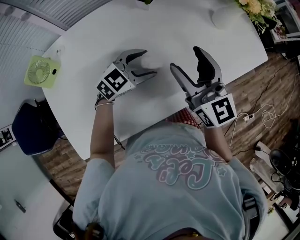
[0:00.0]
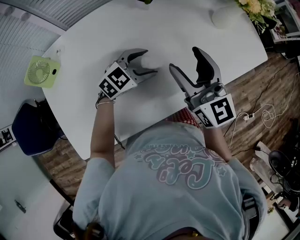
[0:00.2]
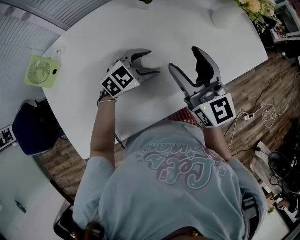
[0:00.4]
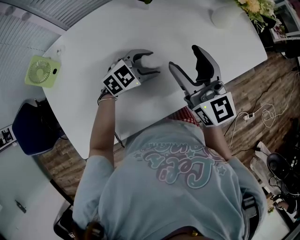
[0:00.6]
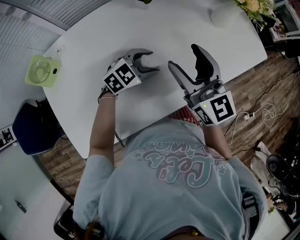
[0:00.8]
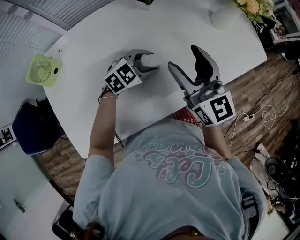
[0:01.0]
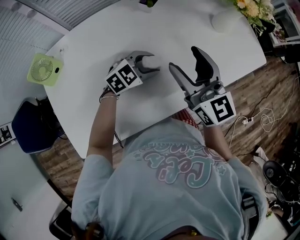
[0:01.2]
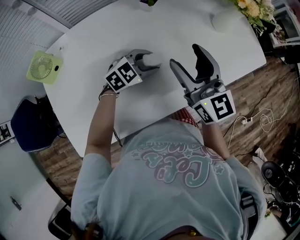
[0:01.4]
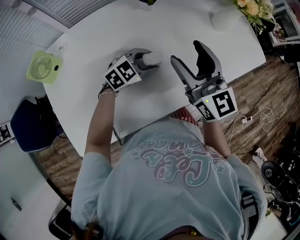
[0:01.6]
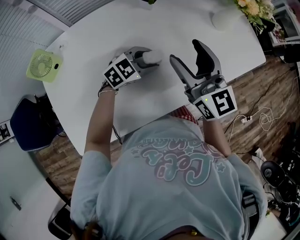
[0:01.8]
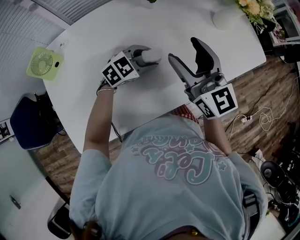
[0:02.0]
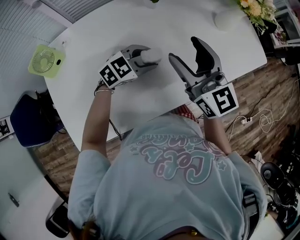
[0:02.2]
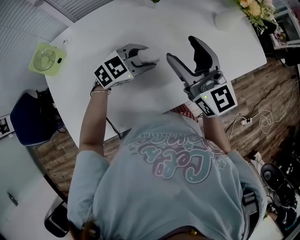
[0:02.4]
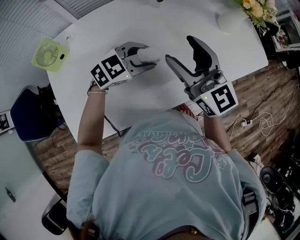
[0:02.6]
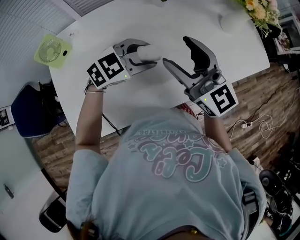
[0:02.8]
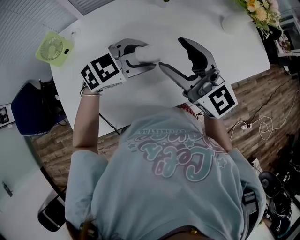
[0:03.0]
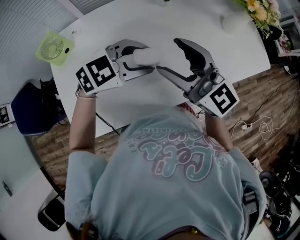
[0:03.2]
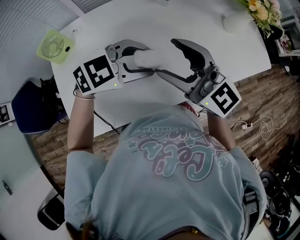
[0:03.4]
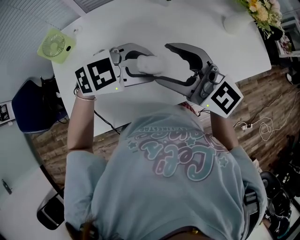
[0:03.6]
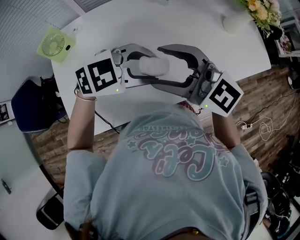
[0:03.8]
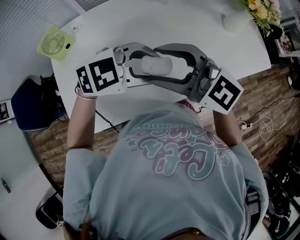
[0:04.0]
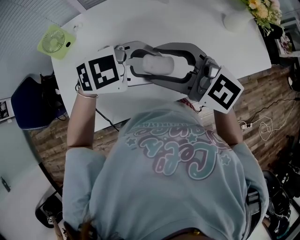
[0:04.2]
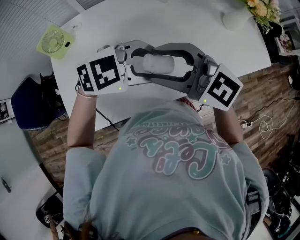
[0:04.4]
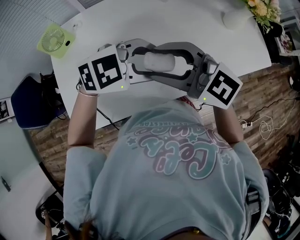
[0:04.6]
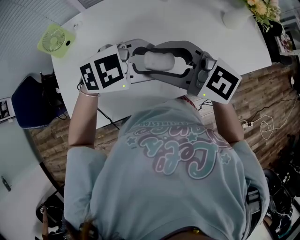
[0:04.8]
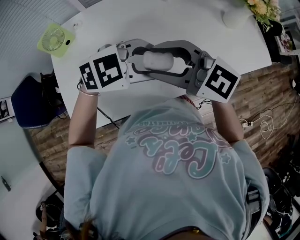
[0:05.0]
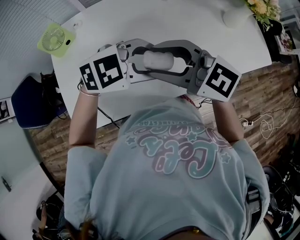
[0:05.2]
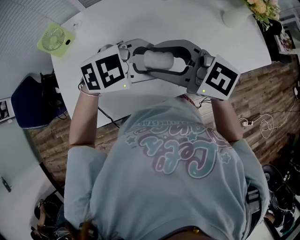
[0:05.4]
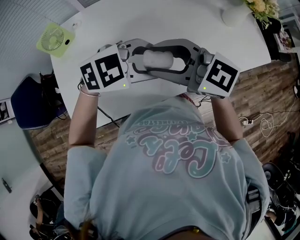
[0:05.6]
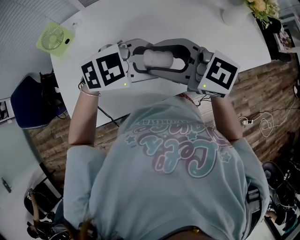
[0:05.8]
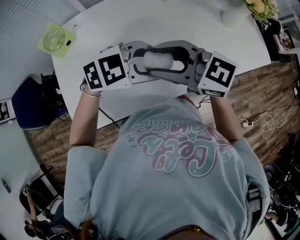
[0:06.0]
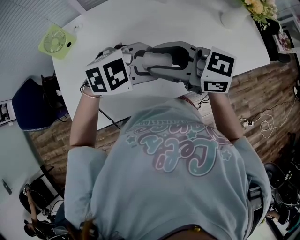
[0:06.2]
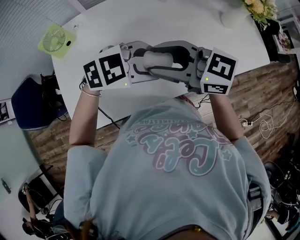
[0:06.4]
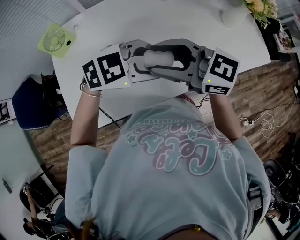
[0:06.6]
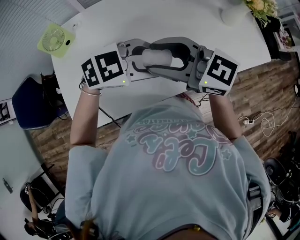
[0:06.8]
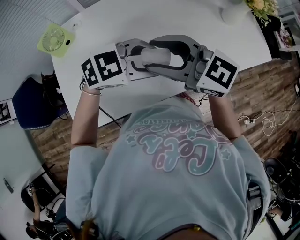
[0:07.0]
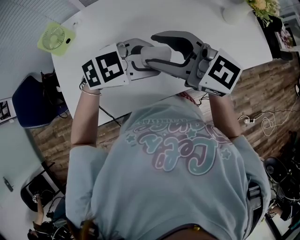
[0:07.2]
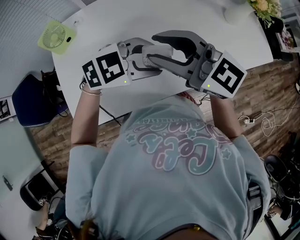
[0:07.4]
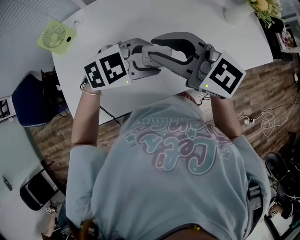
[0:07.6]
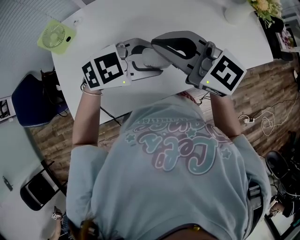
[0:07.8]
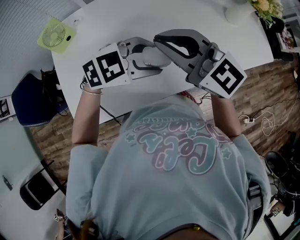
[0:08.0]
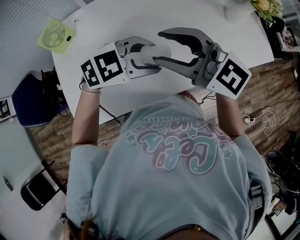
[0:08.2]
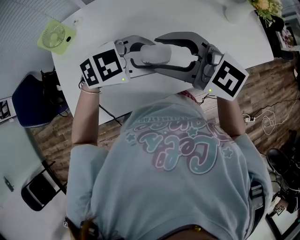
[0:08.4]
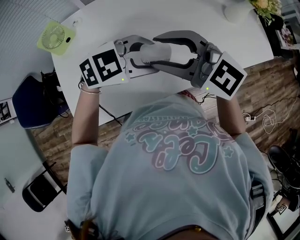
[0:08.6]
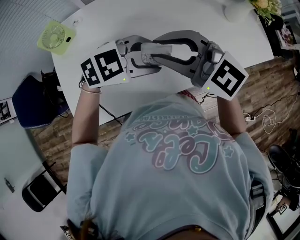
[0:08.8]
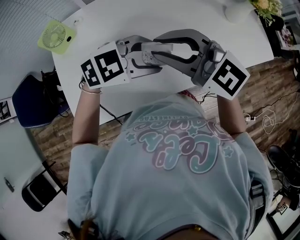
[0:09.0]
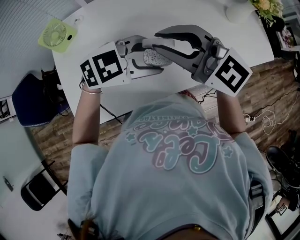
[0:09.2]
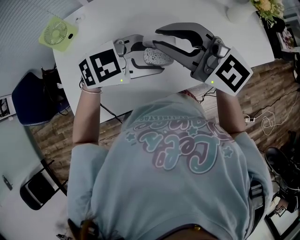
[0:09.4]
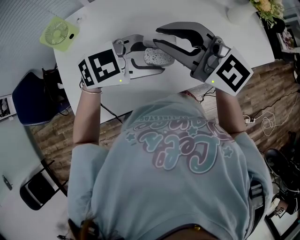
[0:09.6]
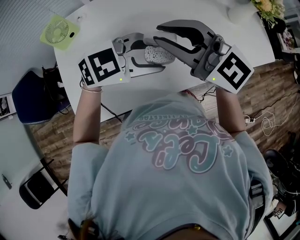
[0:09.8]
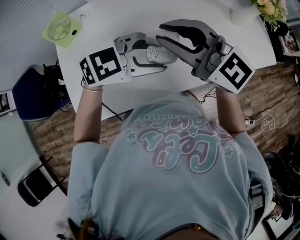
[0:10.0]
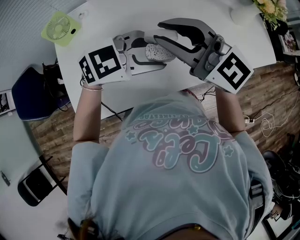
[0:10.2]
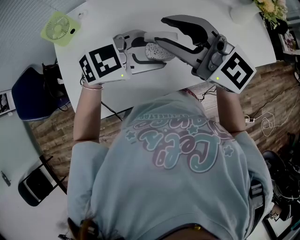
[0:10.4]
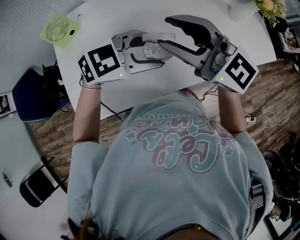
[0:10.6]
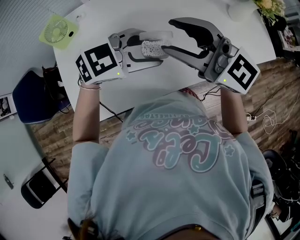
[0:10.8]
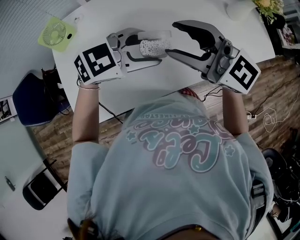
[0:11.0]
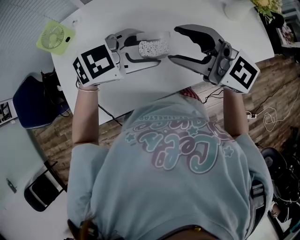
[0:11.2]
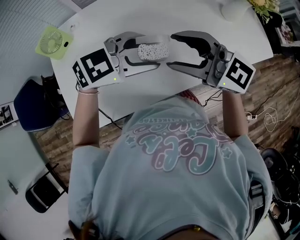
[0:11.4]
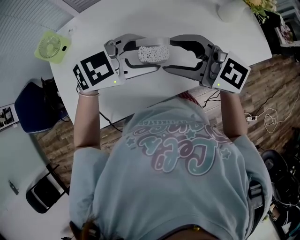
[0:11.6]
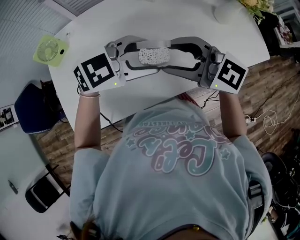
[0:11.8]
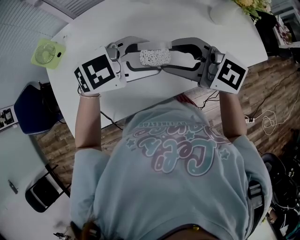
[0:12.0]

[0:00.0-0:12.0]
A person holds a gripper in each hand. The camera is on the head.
0:00.0 to 0:01.6: The left gripper closes its fingers.
0:01.6 to 0:03.0: The left gripper shifts roughly 15 cm upward and backward. Meanwhile the right gripper is displaced backward and to the left by about 10 cm, and turns by roughly 20 degrees.
0:03.0 to 0:04.4: The right gripper moves roughly 10 cm, and changes its angle by about 30 degrees. The left gripper ends up approximately 10 cm from where it was.
0:04.4 to 0:06.0: The grippers stay close to where they were, moving slightly.
0:06.0 to 0:07.6: The grippers make only small movements.
0:07.6 to 0:09.0: The right gripper opens, then closes once more.
0:09.0 to 0:10.4: The grippers stay close to where they were, moving slightly.
0:10.4 to 0:12.0: The left gripper changes place by roughly 10 cm. Meanwhile the right gripper changes place by approximately 15 cm.

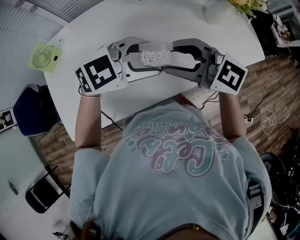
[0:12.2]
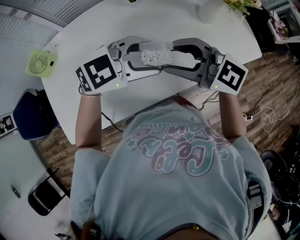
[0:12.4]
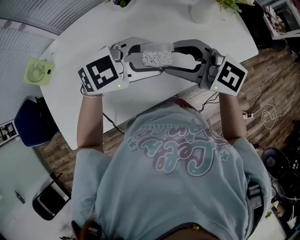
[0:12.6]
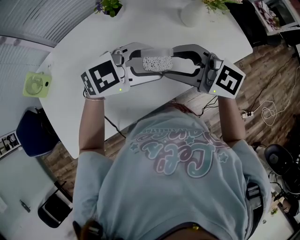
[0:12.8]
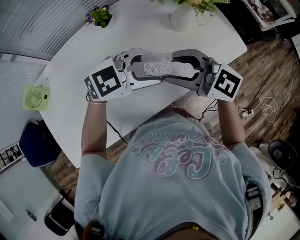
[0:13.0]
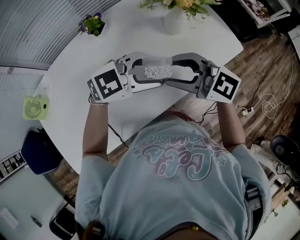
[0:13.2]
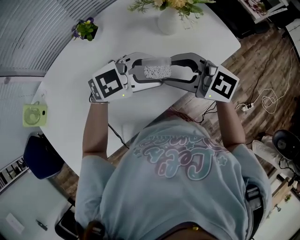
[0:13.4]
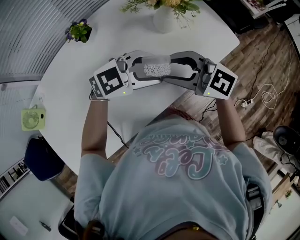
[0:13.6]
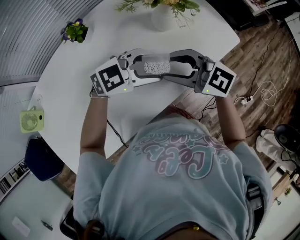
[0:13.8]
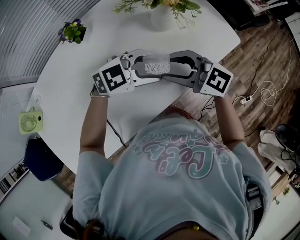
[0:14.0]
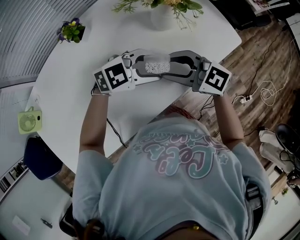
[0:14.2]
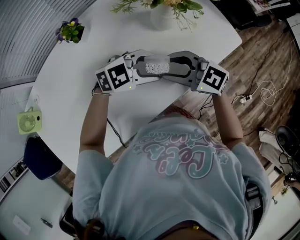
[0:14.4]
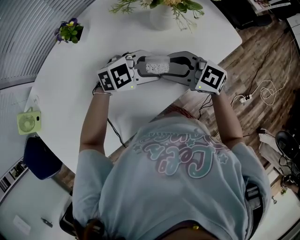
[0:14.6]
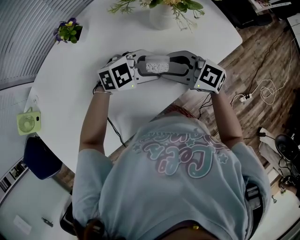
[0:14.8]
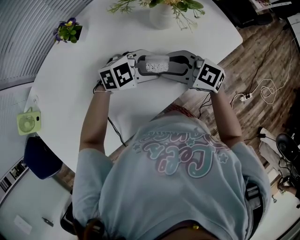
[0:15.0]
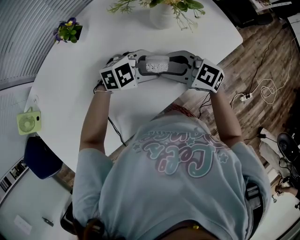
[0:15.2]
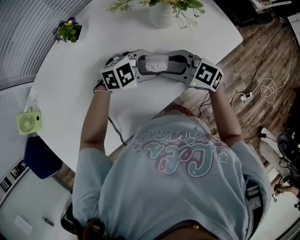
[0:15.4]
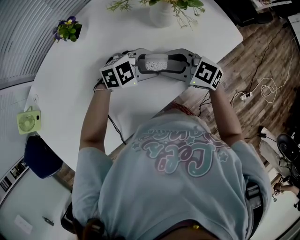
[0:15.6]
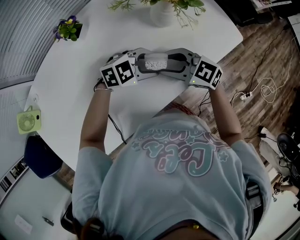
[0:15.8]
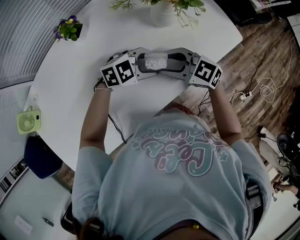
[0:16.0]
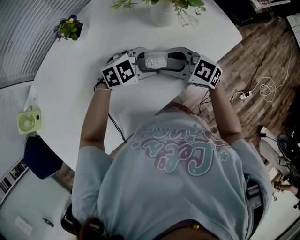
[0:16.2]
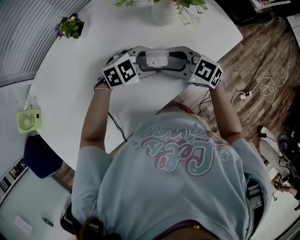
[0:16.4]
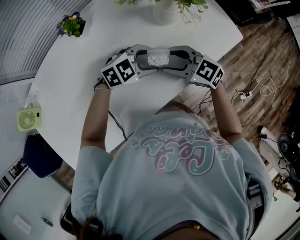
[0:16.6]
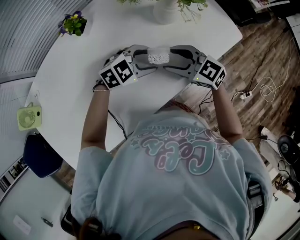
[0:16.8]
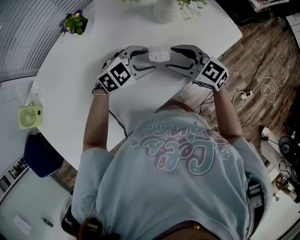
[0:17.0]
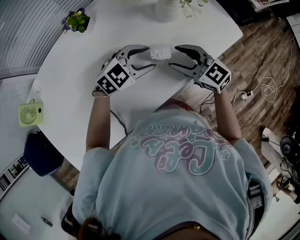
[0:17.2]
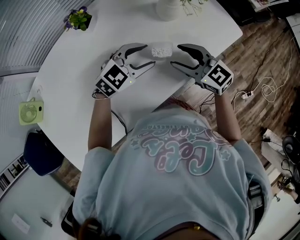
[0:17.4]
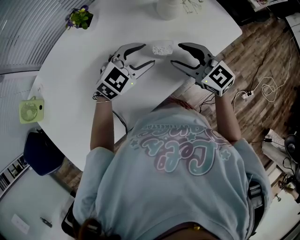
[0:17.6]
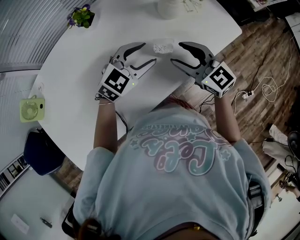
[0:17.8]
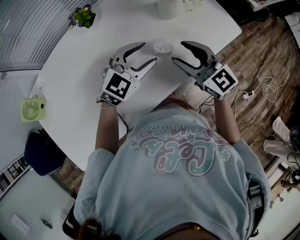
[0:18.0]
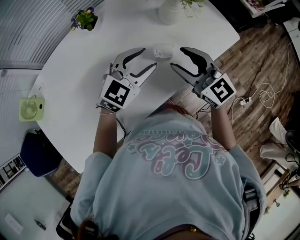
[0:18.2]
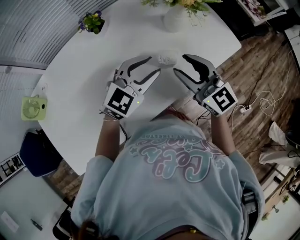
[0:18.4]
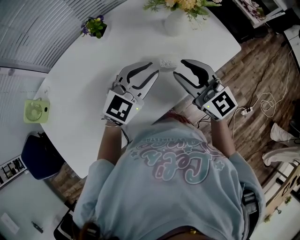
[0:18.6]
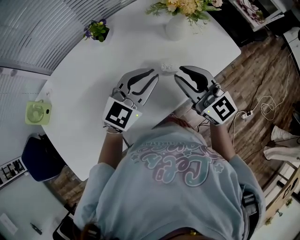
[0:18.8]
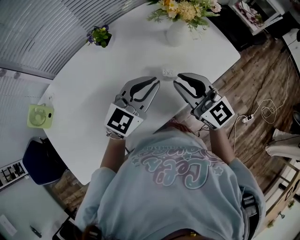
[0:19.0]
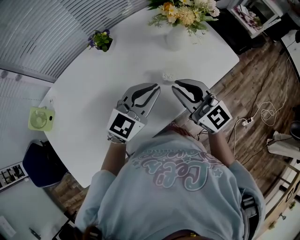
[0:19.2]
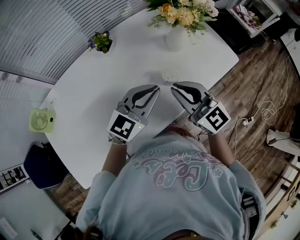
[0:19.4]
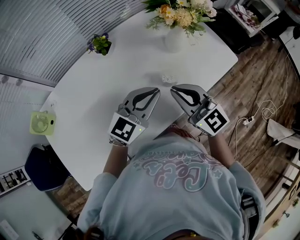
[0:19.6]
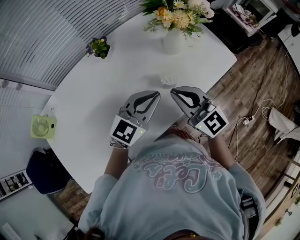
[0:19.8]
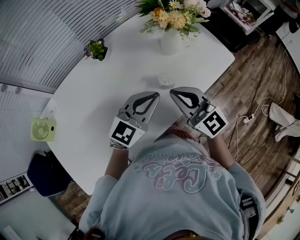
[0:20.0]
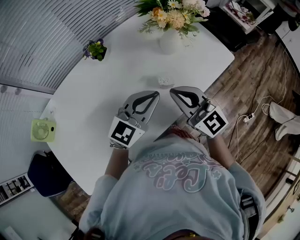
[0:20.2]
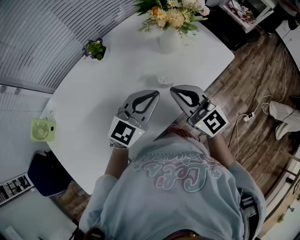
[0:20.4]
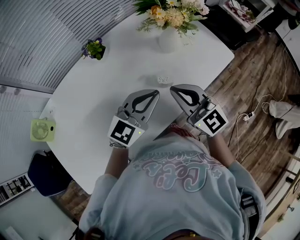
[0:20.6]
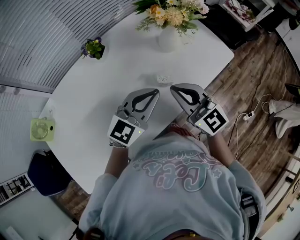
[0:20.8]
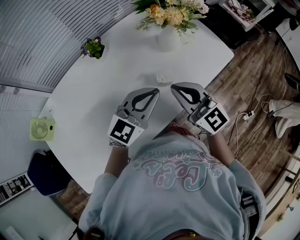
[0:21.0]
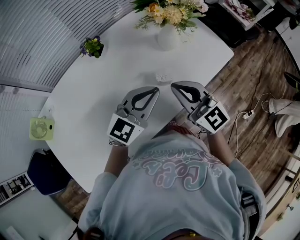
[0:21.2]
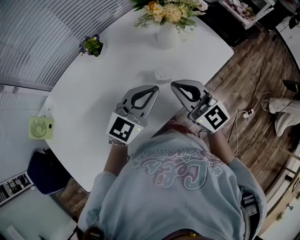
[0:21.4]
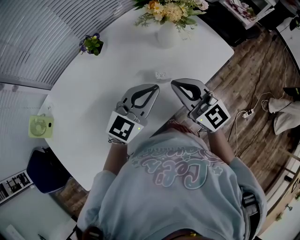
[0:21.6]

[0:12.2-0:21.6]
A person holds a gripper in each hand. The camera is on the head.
0:12.2 to 0:13.8: The right gripper moves about 20 cm. The left gripper shifts by some 20 cm.
0:13.8 to 0:15.4: Both grippers travel together downward, some 10 cm.
0:15.4 to 0:17.0: The grippers stay close to where they were, moving slightly.
0:17.0 to 0:18.4: Both grippers move upward, about 10 cm. The left gripper swivels roughly 30 degrees. Meanwhile the right gripper rotates approximately 20 degrees.
0:18.4 to 0:20.0: The left gripper closes its fingers, while the right gripper closes up.
0:20.0 to 0:21.6: There are only small adjustments of the grippers.

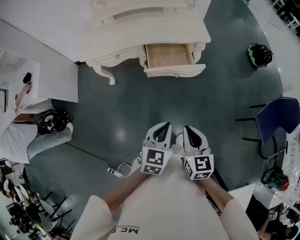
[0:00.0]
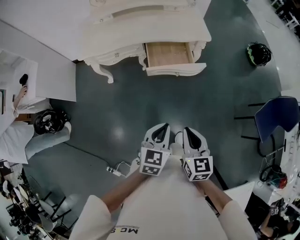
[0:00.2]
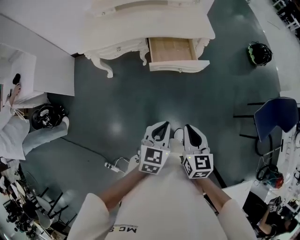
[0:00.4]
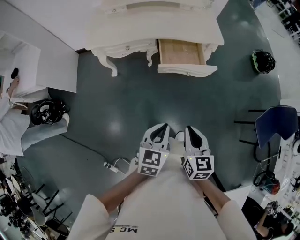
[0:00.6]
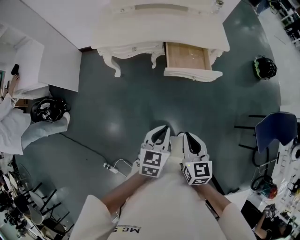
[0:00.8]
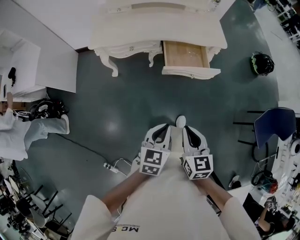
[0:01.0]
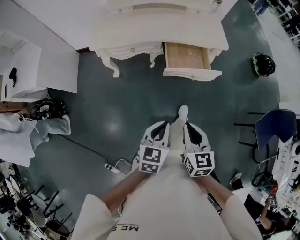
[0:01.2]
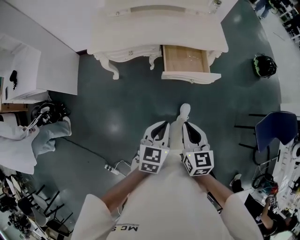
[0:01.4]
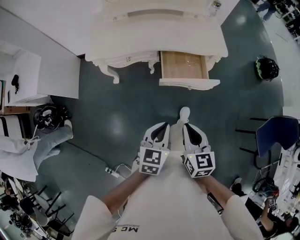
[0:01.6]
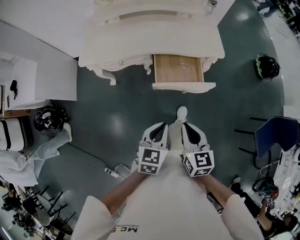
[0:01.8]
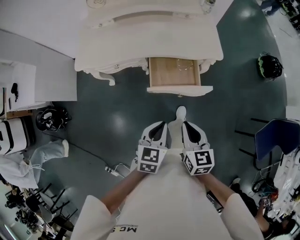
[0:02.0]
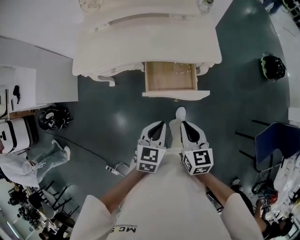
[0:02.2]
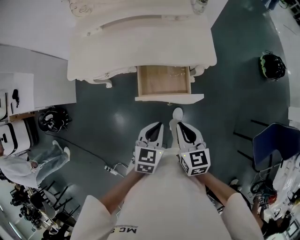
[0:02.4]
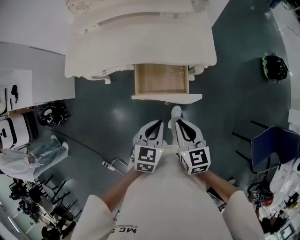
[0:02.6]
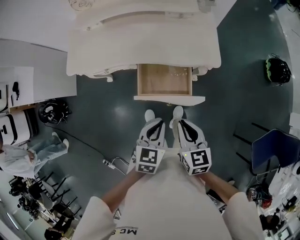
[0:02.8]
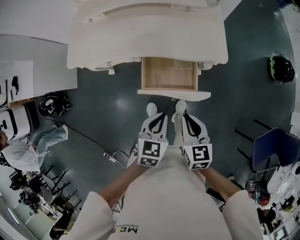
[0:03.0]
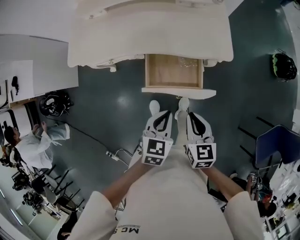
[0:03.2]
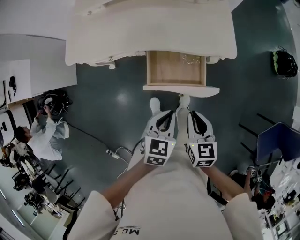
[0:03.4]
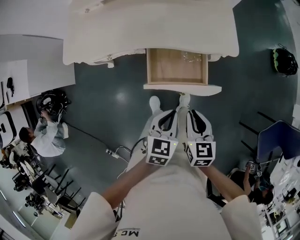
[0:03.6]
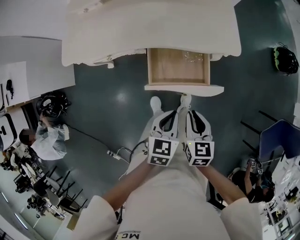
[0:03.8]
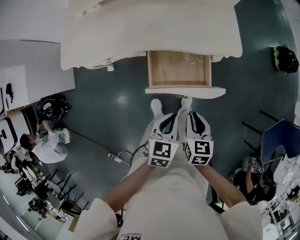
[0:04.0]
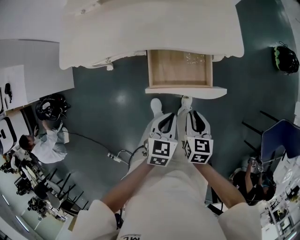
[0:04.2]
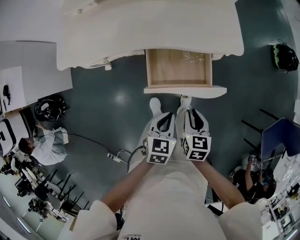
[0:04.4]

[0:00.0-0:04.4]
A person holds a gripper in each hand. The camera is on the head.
0:00.0 to 0:01.4: The left gripper is displaced to the left by roughly 10 cm, while the right gripper heads to the left and forward, covering some 15 cm.
0:01.4 to 0:03.0: The two grippers go about 25 cm forward and to the right.
0:03.0 to 0:04.4: Both grippers move downward, roughly 10 cm.
